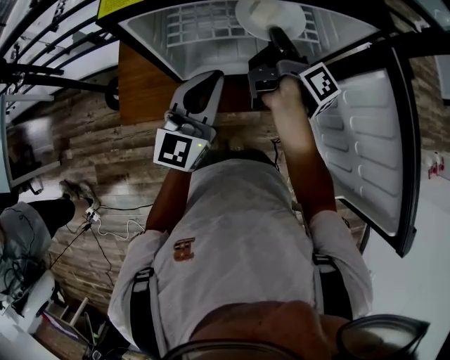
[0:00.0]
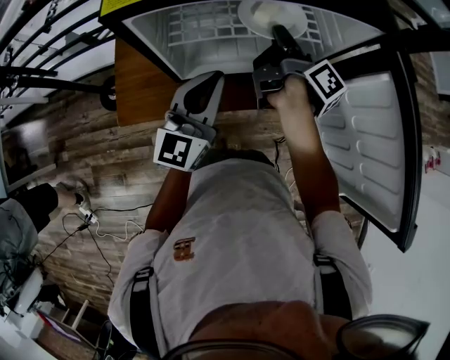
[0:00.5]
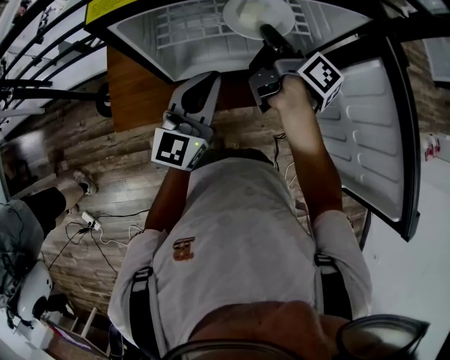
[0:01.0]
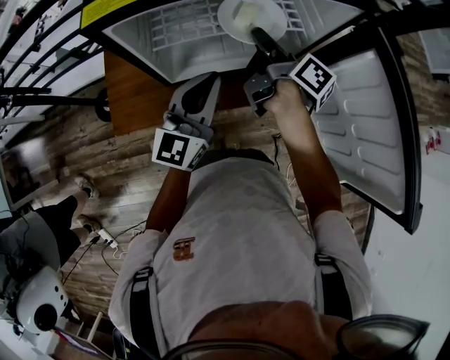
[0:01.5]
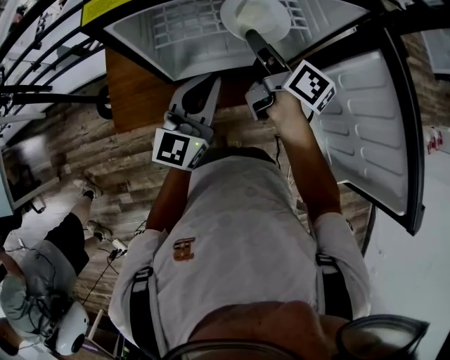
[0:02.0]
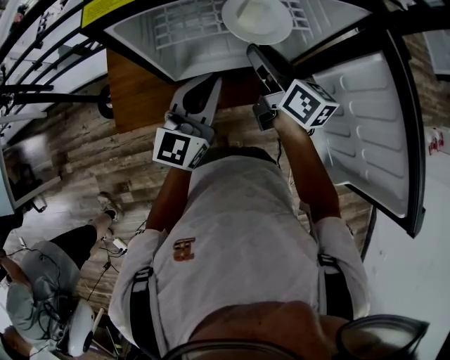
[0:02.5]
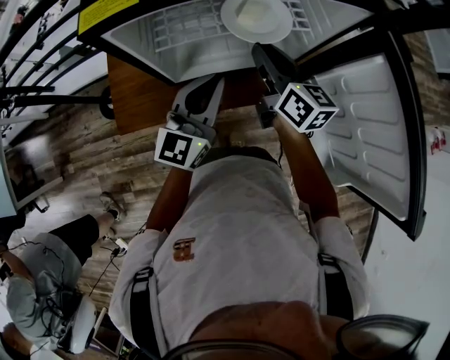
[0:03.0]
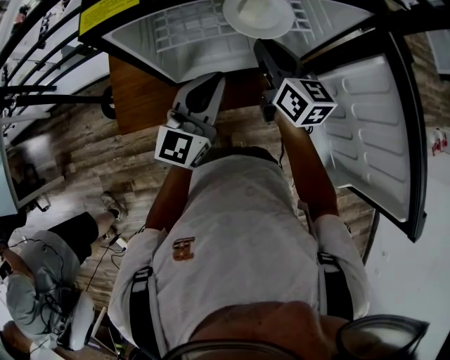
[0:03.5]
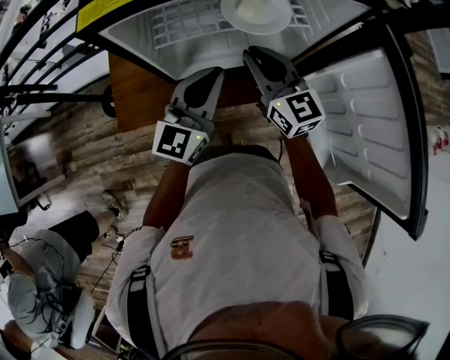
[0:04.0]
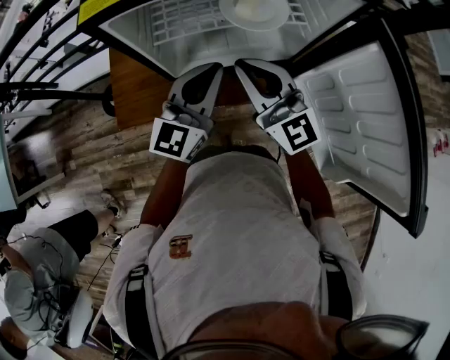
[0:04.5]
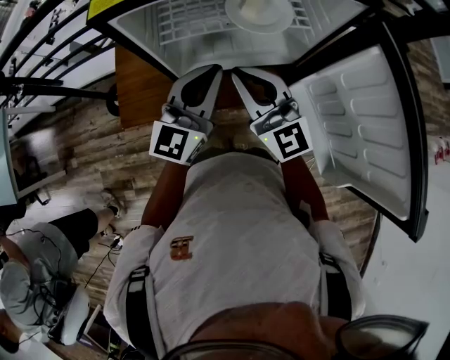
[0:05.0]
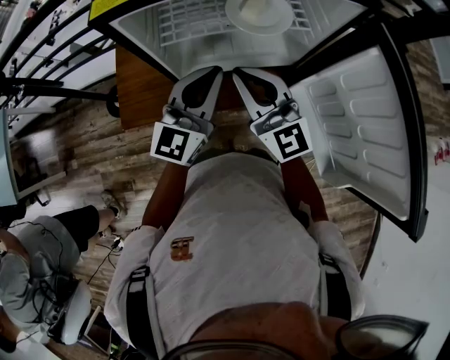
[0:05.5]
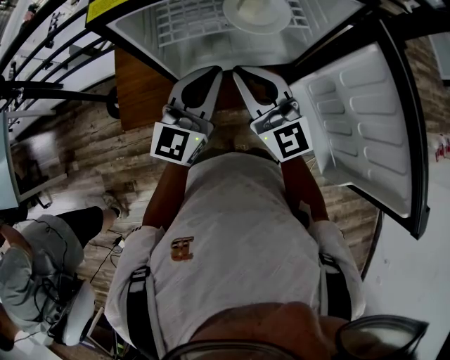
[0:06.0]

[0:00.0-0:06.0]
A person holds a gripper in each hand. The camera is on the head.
0:00.0 to 0:02.0: The right gripper changes its angle by some 30 degrees, and opens up.
0:02.0 to 0:04.0: The right gripper rolls counterclockwise, seen from behind, by some 60 degrees, and closes.
0:04.0 to 0:06.0: The right gripper is displaced backward and upward by approximately 10 cm, and turns by some 20 degrees.

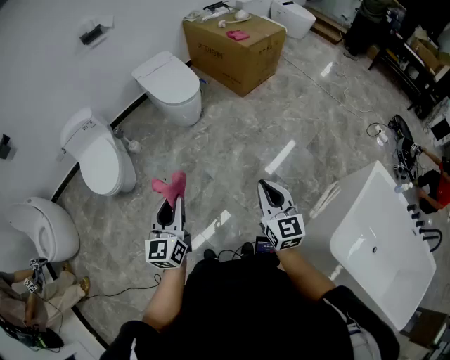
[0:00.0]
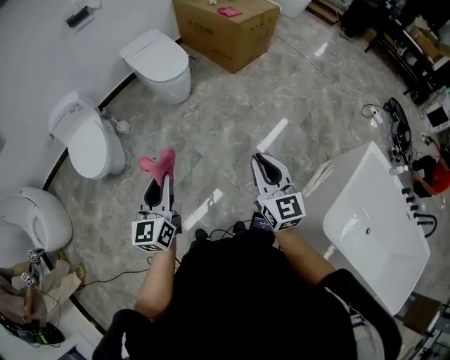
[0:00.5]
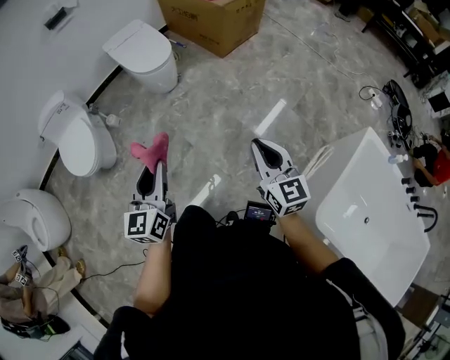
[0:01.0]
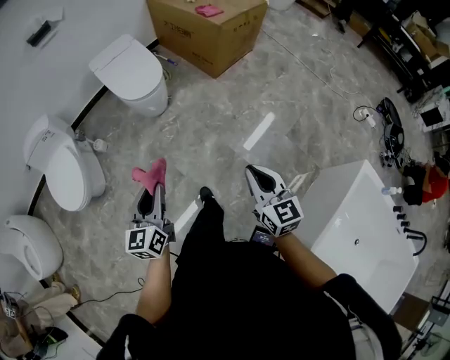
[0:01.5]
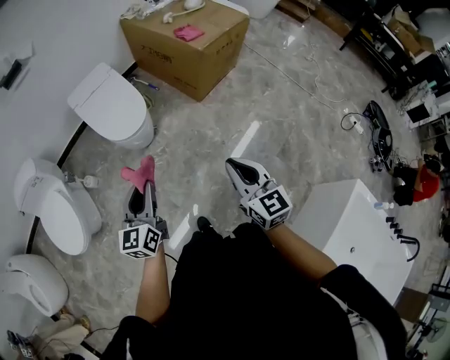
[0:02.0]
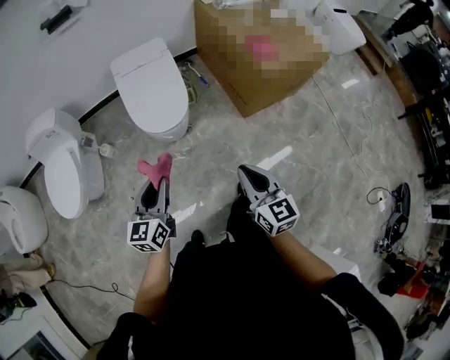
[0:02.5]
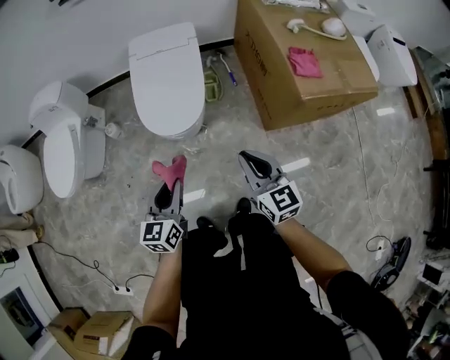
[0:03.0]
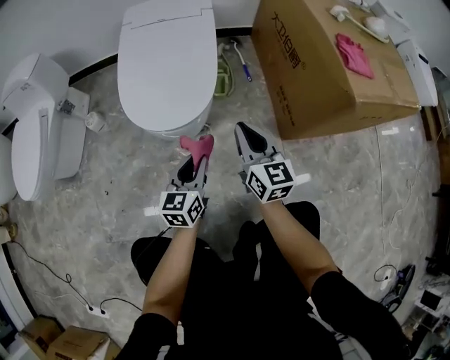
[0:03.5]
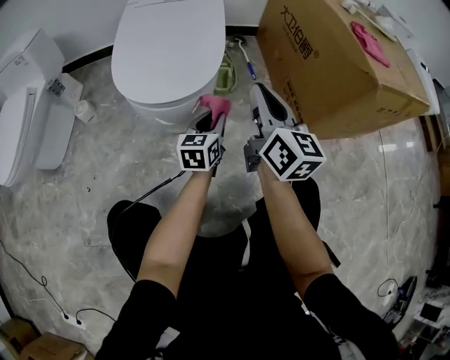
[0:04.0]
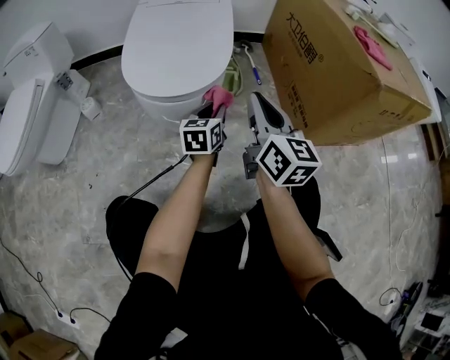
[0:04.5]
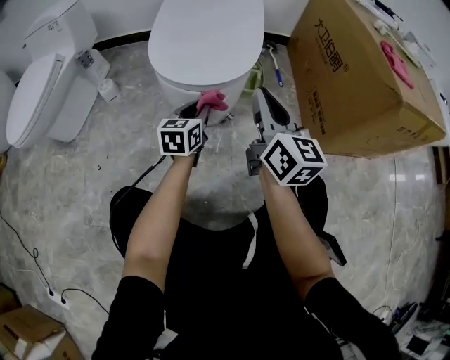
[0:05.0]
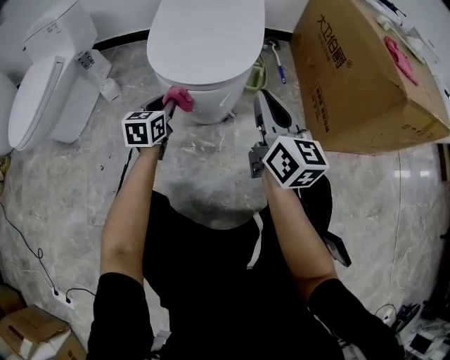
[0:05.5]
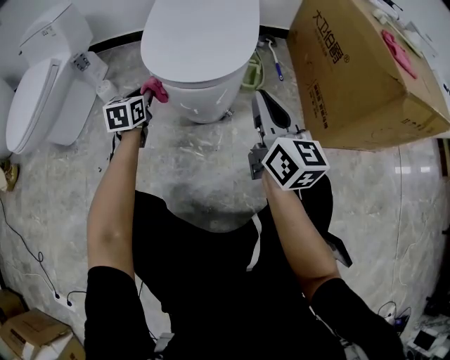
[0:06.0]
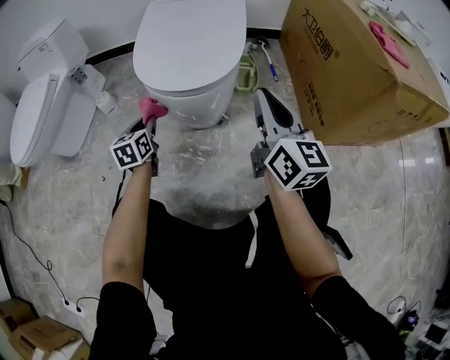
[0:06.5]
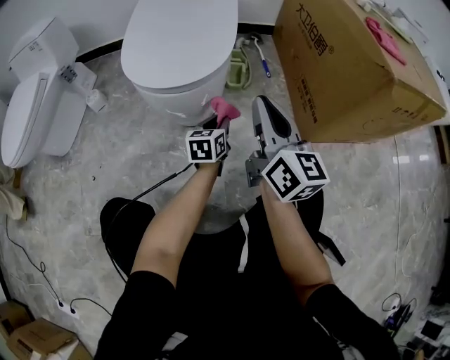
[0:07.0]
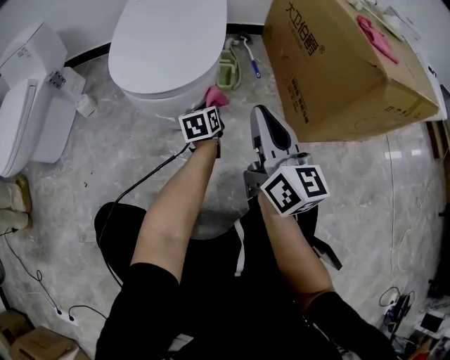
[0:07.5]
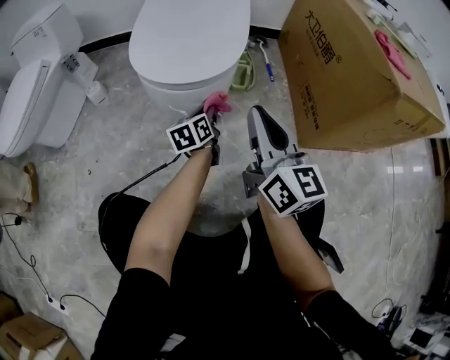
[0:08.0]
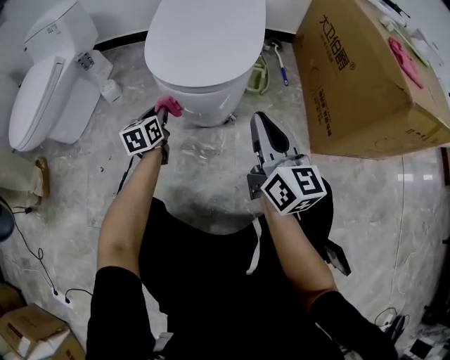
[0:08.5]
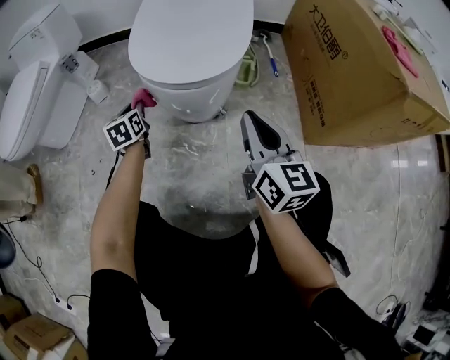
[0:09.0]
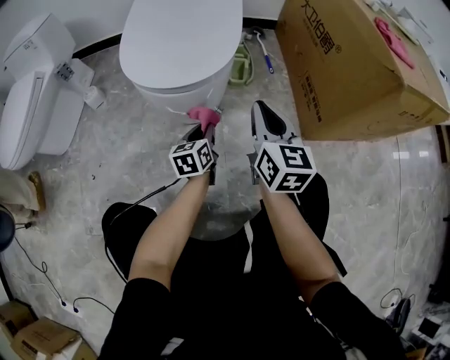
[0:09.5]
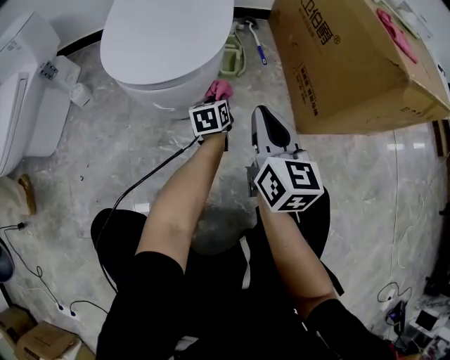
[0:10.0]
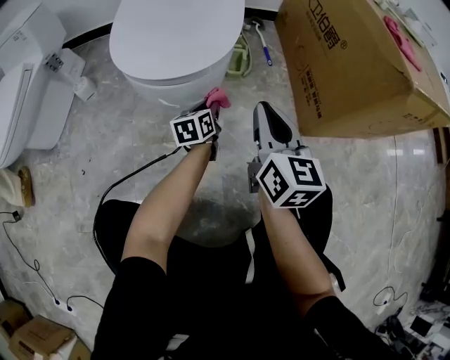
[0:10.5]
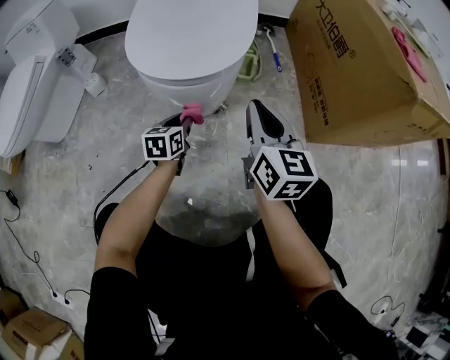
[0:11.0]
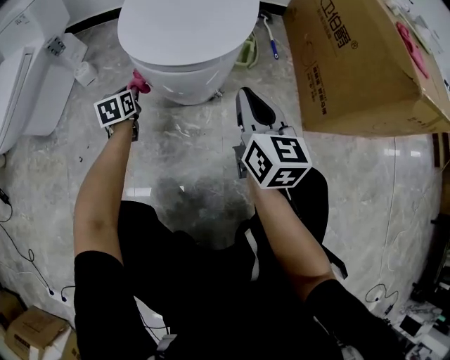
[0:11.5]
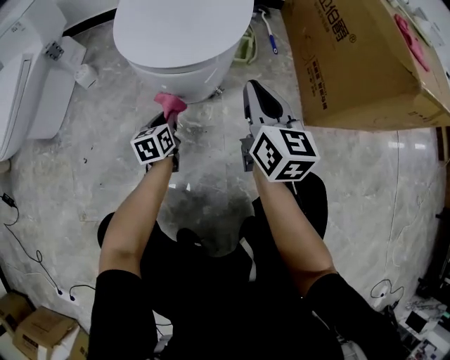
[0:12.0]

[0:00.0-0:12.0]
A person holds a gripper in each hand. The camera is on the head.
0:00.0 to 0:02.0: The grippers both shift forward by roughly 40 cm.
0:02.0 to 0:04.0: Both grippers are carried approximately 50 cm. The right gripper turns by approximately 30 degrees. The left gripper travels downward by about 60 cm, and swivels some 30 degrees.
0:04.0 to 0:06.0: The left gripper goes approximately 30 cm to the left, and turns by about 20 degrees; the right gripper goes some 5 cm to the left.
0:06.0 to 0:08.0: The left gripper travels to the right by approximately 20 cm, and changes its angle by roughly 30 degrees.
0:08.0 to 0:10.0: Both grippers travel together downward, approximately 5 cm. The left gripper travels to the left and back again, some 25 cm each way.
0:10.0 to 0:12.0: The right gripper goes roughly 5 cm to the left, while the left gripper heads to the left and backward, covering some 20 cm.

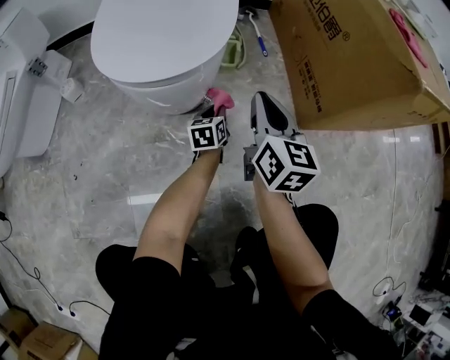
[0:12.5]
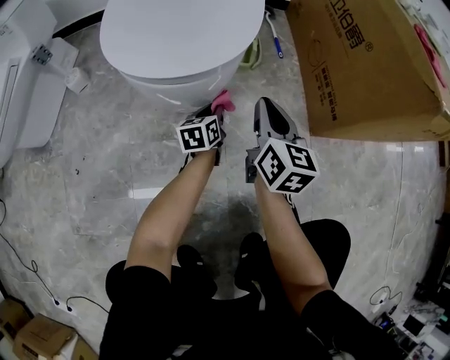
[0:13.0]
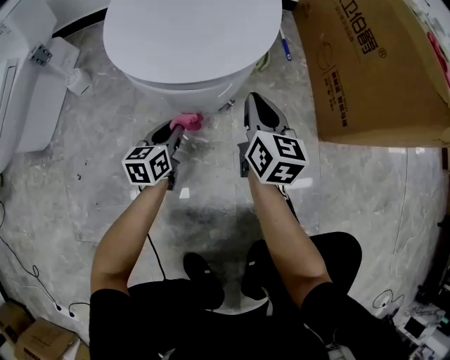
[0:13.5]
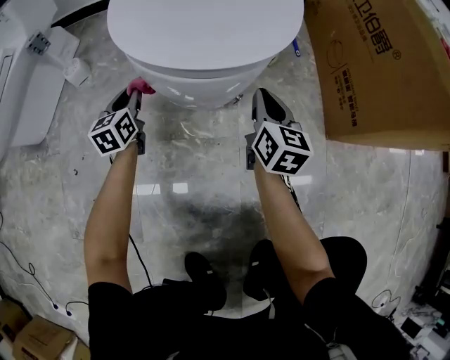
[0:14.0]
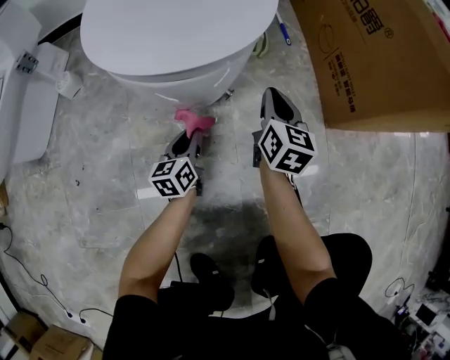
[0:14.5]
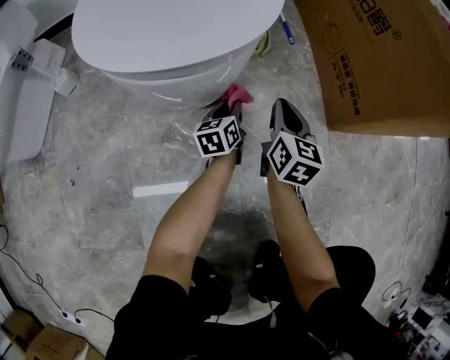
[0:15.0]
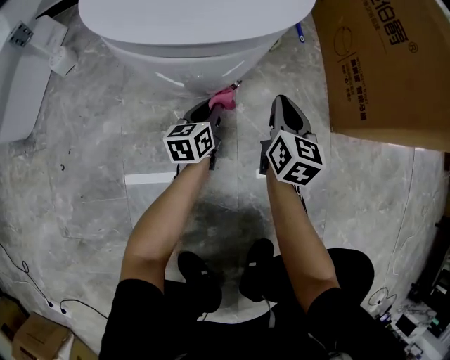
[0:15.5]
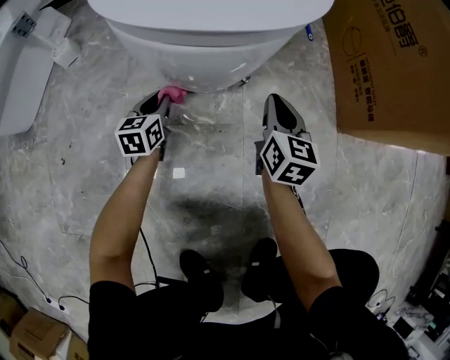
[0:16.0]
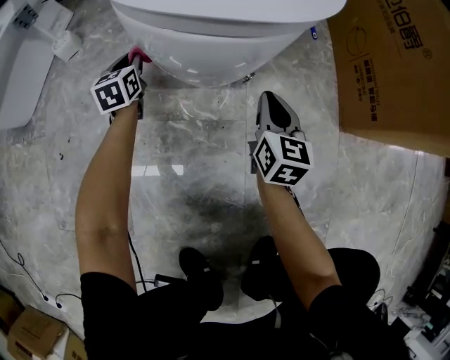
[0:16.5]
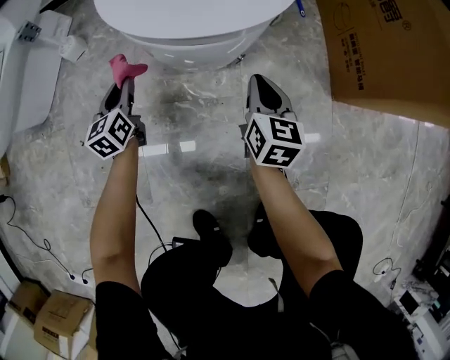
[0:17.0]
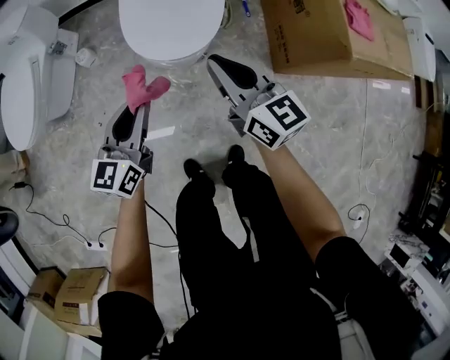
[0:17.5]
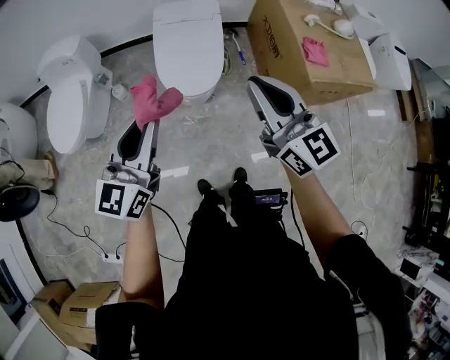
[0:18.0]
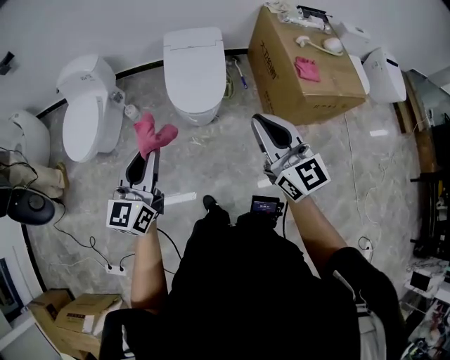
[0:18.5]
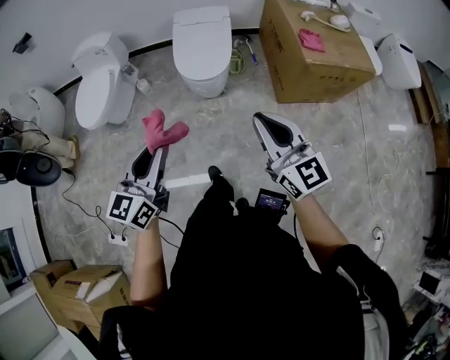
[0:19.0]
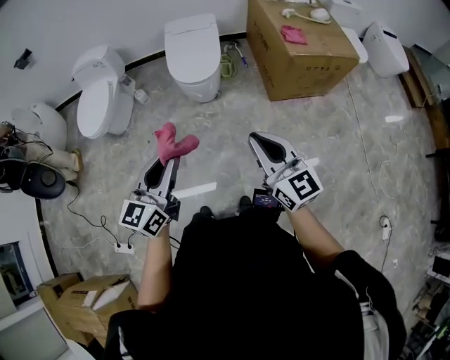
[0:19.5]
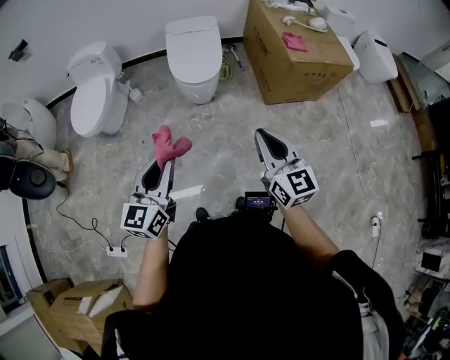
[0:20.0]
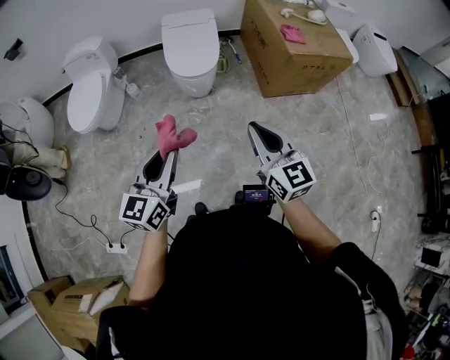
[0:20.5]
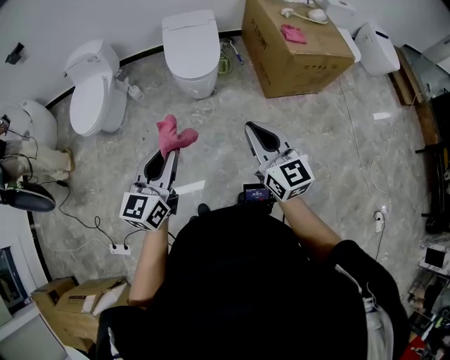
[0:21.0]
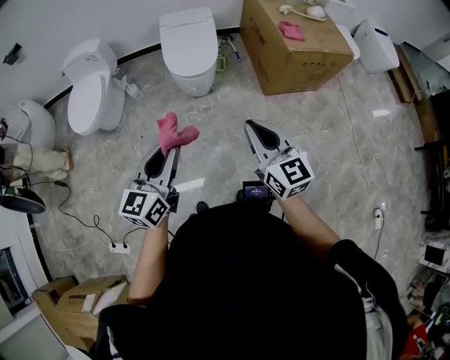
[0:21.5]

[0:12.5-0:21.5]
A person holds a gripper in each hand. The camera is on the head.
0:12.5 to 0:14.5: The left gripper travels to the left and backward by some 15 cm, while the right gripper is displaced downward by approximately 15 cm.
0:14.5 to 0:17.0: The left gripper shifts approximately 20 cm to the left and upward. The right gripper is displaced to the left and backward by approximately 10 cm.
0:17.0 to 0:19.5: Both grippers are carried backward, some 50 cm. Both grippers travel together upward, about 80 cm. The right gripper rotates approximately 40 degrees. Meanwhile the left gripper swivels roughly 30 degrees.
